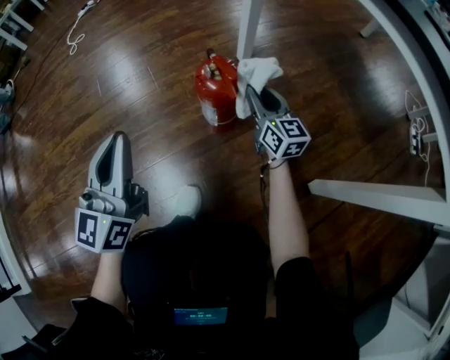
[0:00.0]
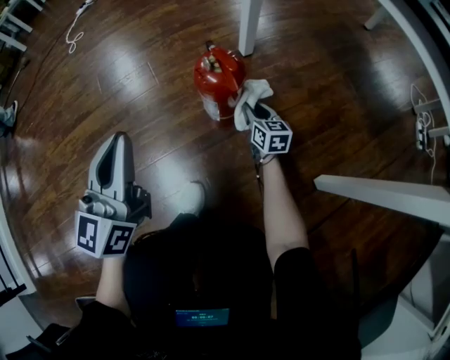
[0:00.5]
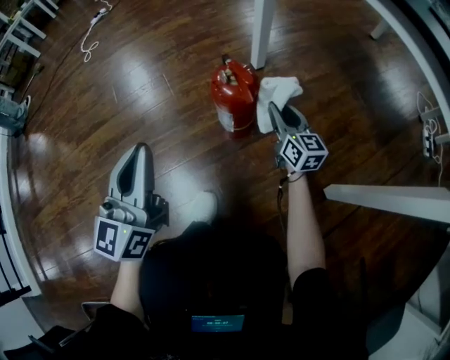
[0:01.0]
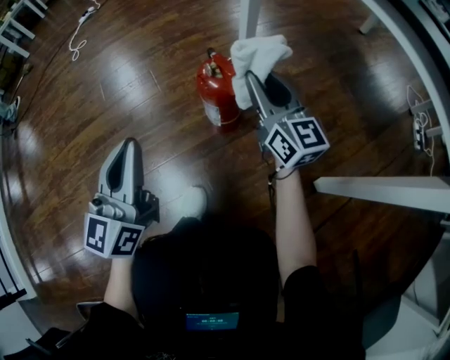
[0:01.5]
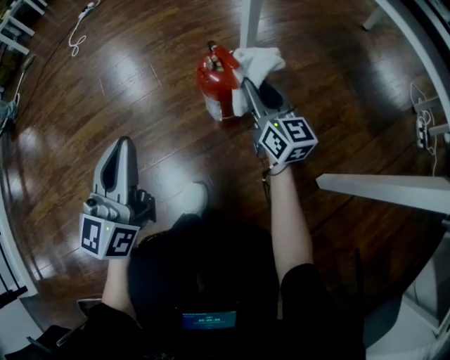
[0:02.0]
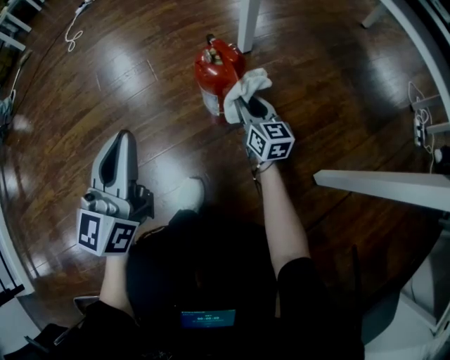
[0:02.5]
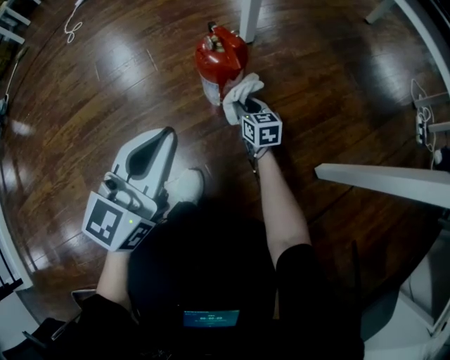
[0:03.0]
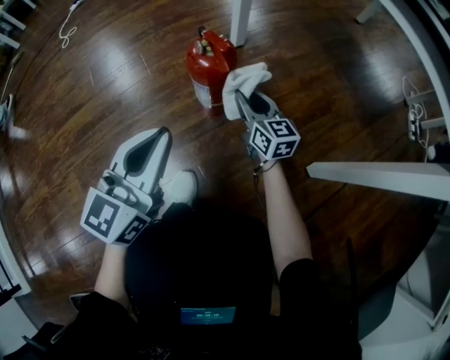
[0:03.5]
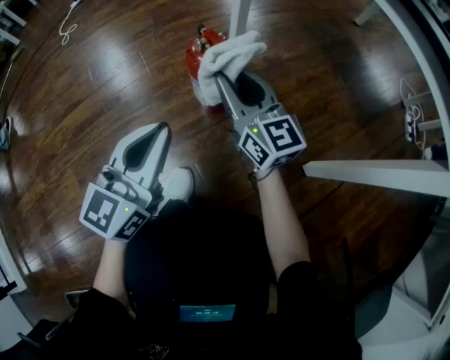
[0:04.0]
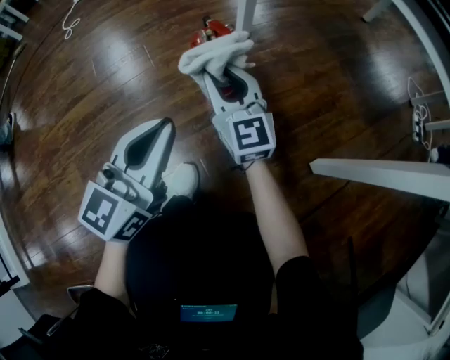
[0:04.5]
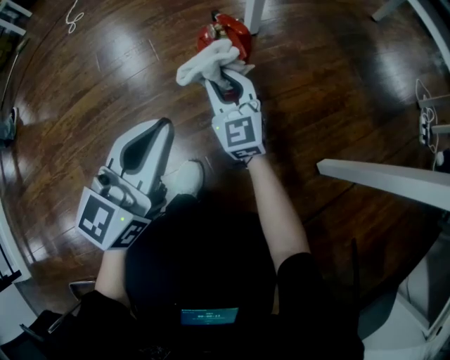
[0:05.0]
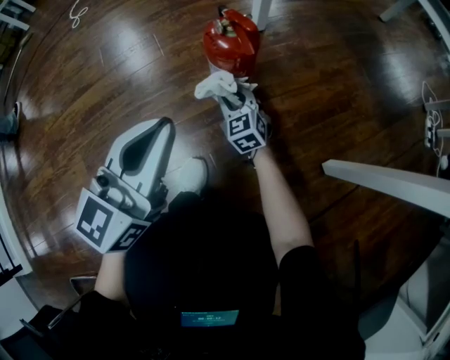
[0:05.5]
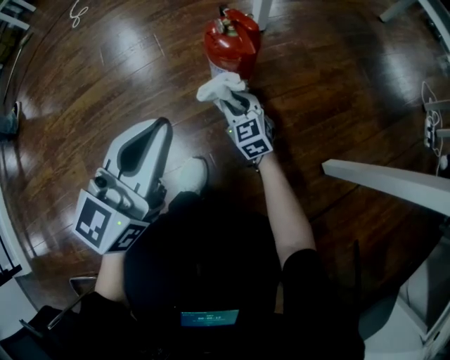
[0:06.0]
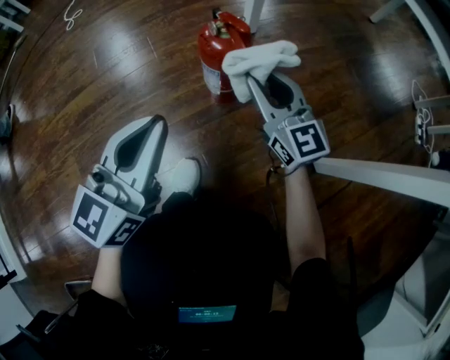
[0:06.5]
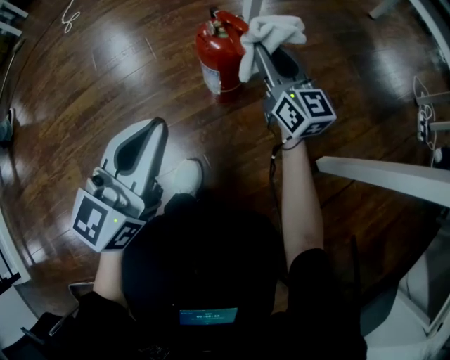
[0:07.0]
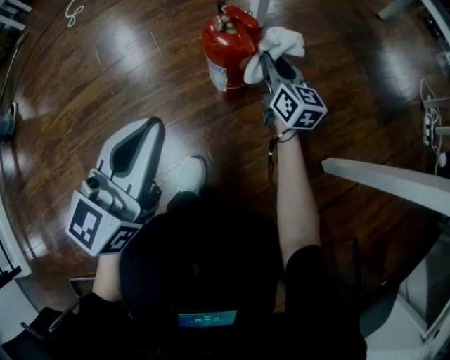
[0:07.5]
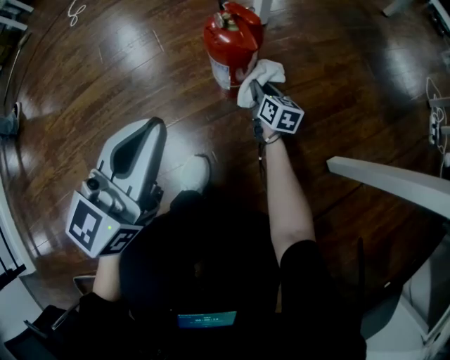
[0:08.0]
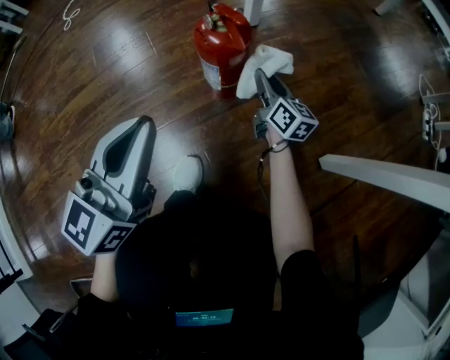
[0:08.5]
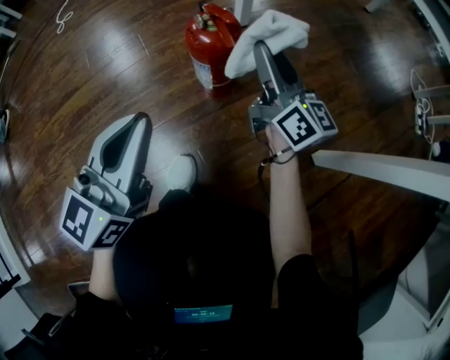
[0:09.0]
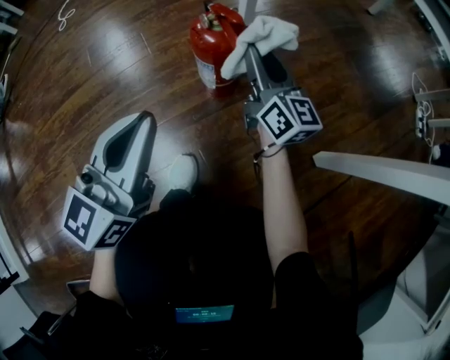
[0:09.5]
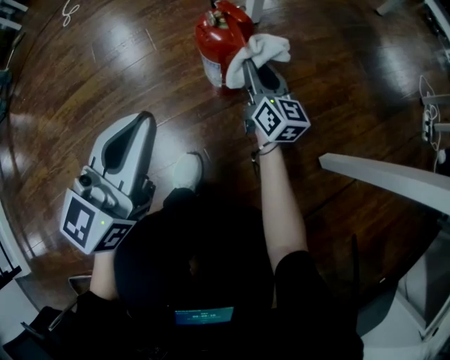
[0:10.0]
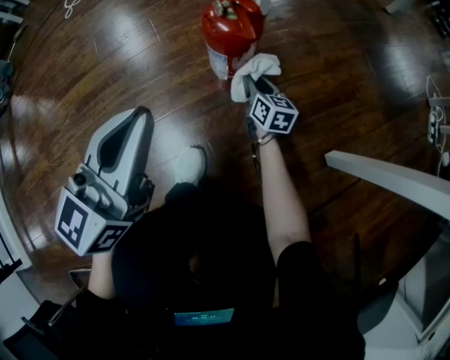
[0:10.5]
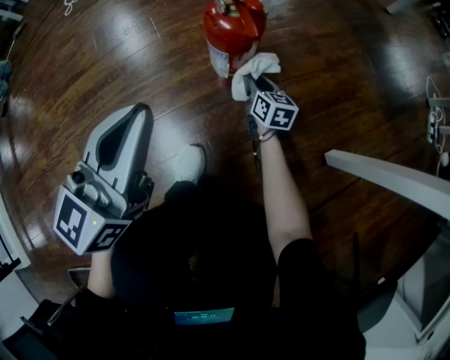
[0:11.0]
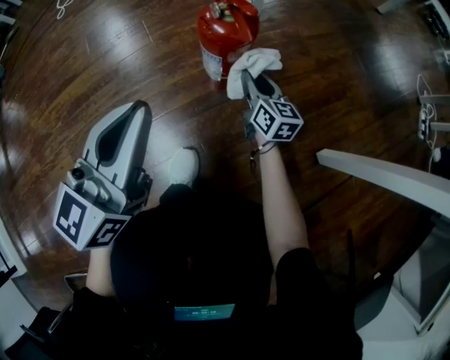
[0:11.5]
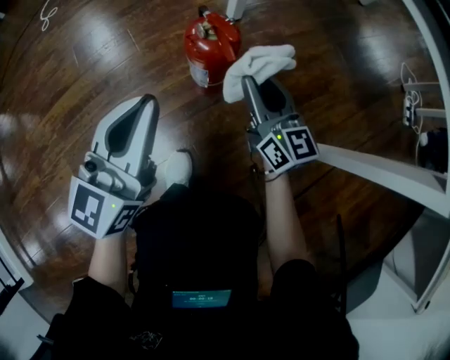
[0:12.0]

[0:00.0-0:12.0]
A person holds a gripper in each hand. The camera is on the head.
0.0 to 2.0 s: The right gripper moves up and down over roughly 30 cm, changing direction 2 times.
2.0 to 4.0 s: The right gripper travels backward by roughly 5 cm, and moves about 20 cm downward and comes back; the left gripper moves to the right, roughly 10 cm.
4.0 to 6.0 s: The right gripper goes some 25 cm downward, and rotates approximately 30 degrees.
6.0 to 8.0 s: The right gripper is displaced to the right and forward by roughly 10 cm, reaches some 20 cm upward, then returns, and twists some 50 degrees clockwise, seen from behind.
8.0 to 10.0 s: The right gripper goes some 15 cm upward, and turns by approximately 20 degrees.
10.0 to 12.0 s: The left gripper is displaced forward by about 5 cm. Meanwhile the right gripper heads upward, covering about 10 cm.

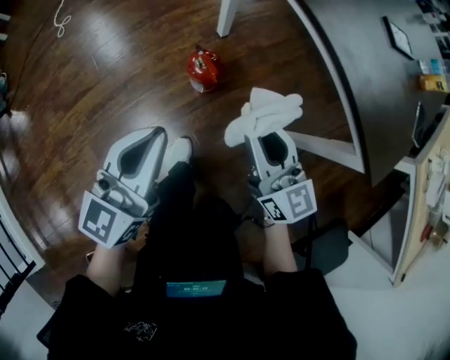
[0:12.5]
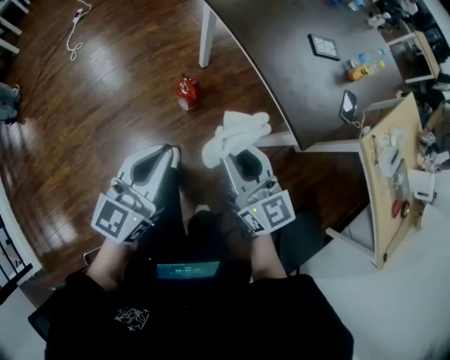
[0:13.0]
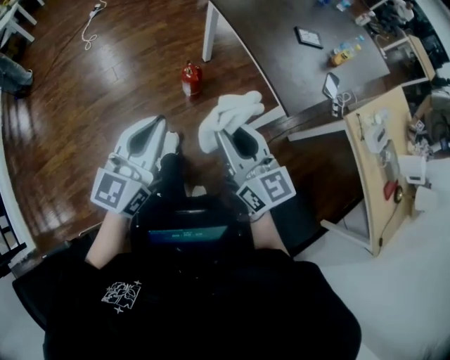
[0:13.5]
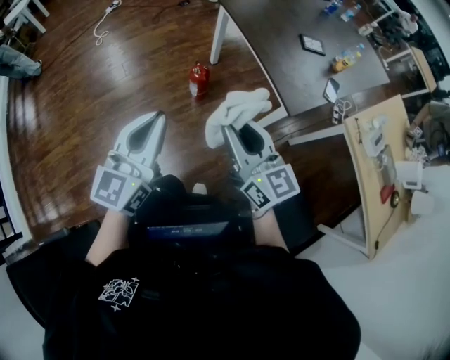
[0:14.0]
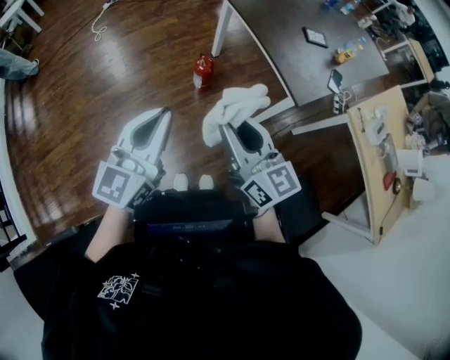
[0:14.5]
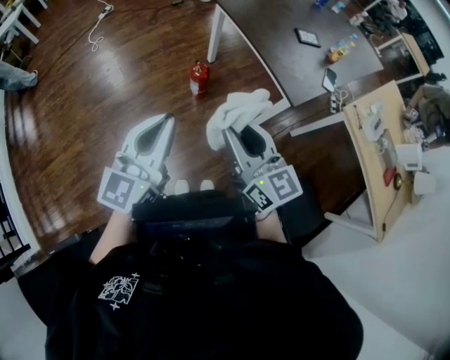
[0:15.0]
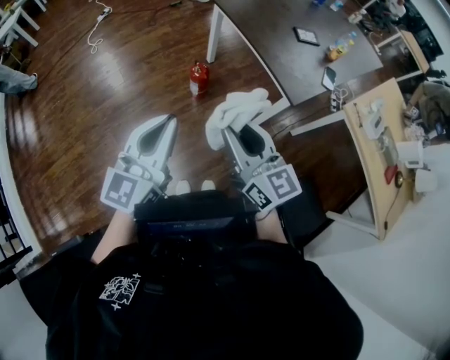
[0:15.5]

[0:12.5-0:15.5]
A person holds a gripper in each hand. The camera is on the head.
12.5 to 14.0 s: Both grippers travel together upward and backward, about 50 cm.
14.0 to 15.5 s: The grippers move only a little.

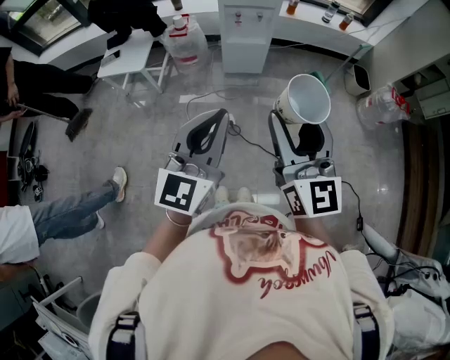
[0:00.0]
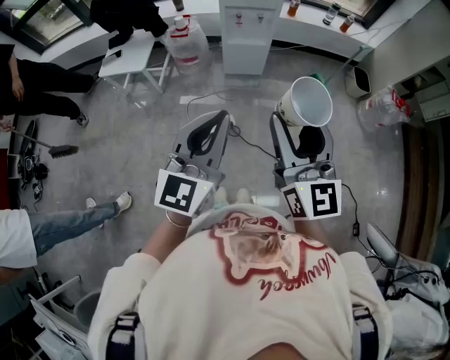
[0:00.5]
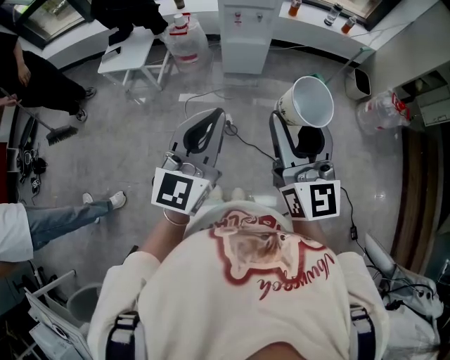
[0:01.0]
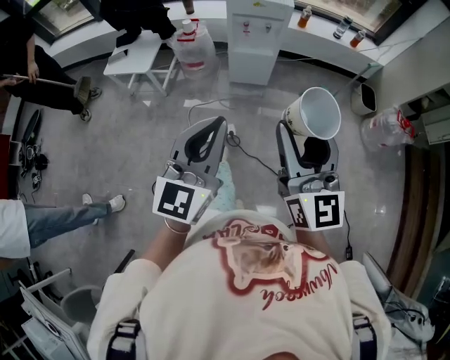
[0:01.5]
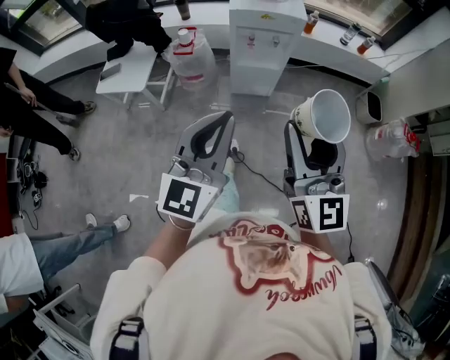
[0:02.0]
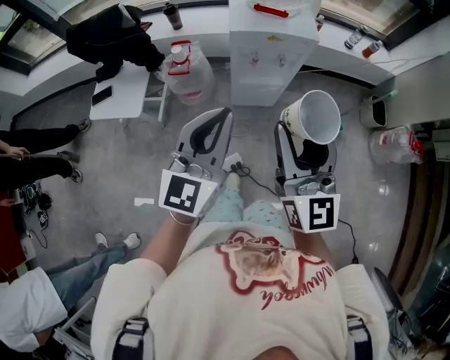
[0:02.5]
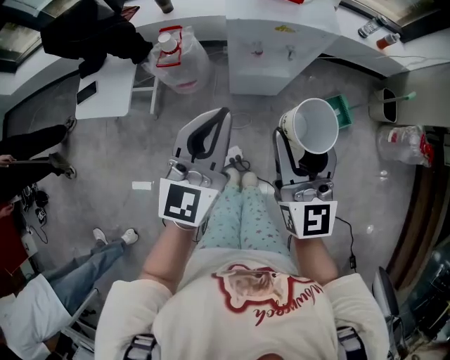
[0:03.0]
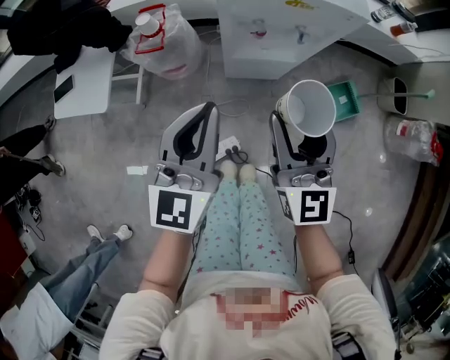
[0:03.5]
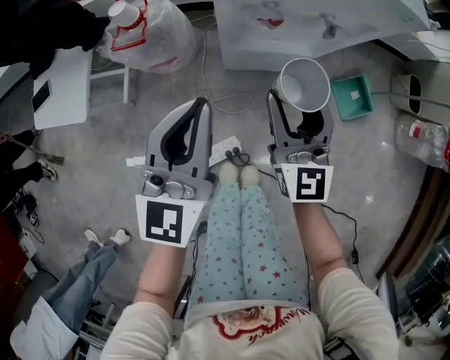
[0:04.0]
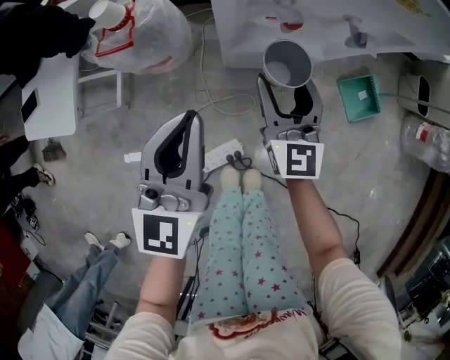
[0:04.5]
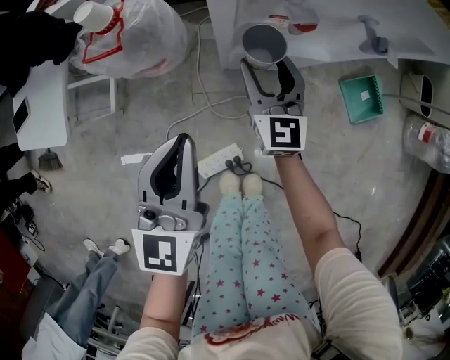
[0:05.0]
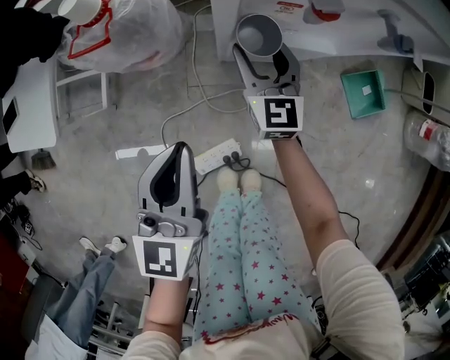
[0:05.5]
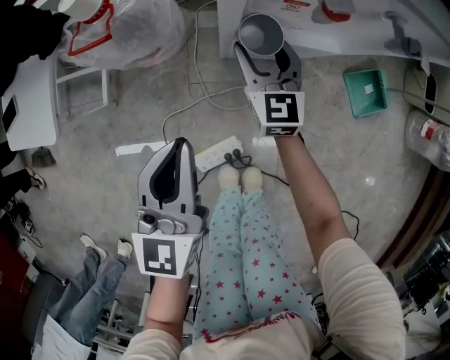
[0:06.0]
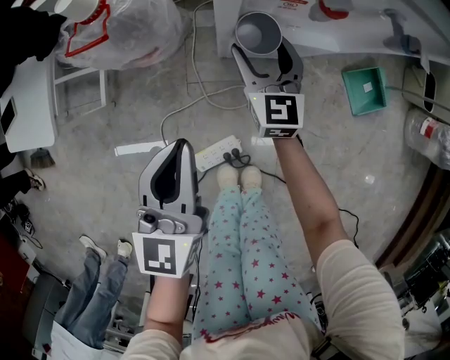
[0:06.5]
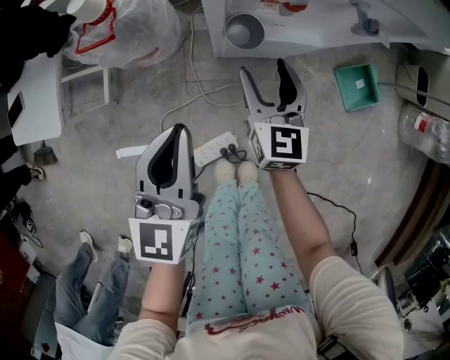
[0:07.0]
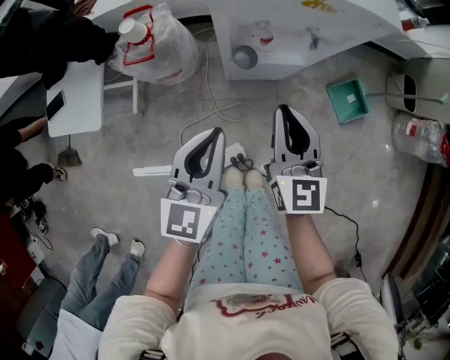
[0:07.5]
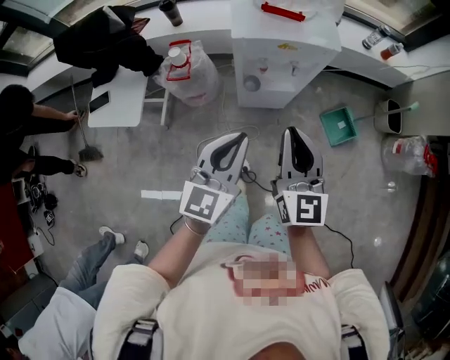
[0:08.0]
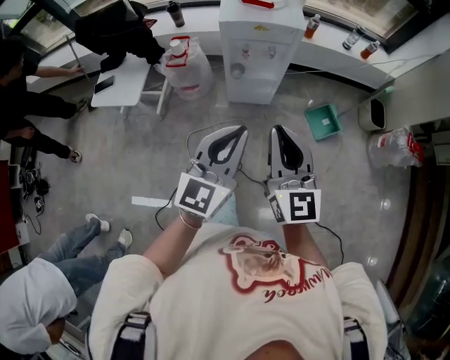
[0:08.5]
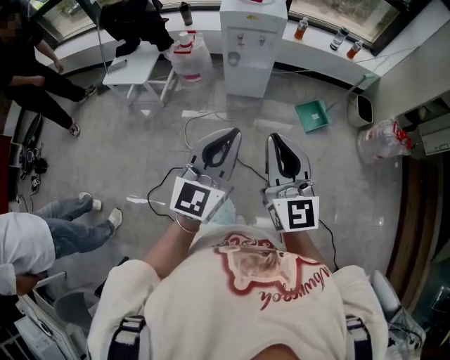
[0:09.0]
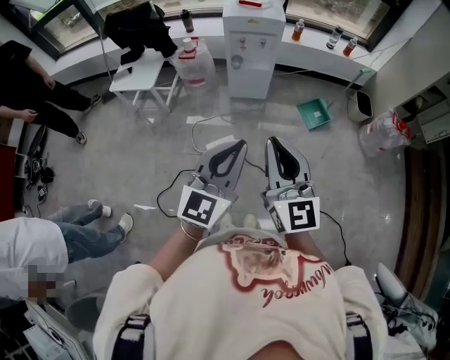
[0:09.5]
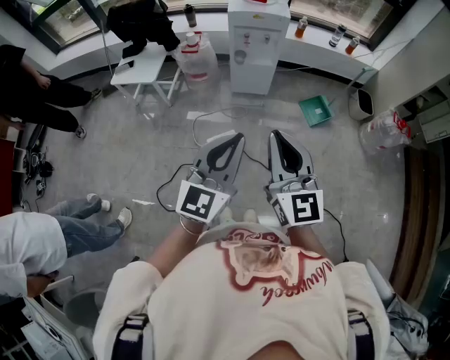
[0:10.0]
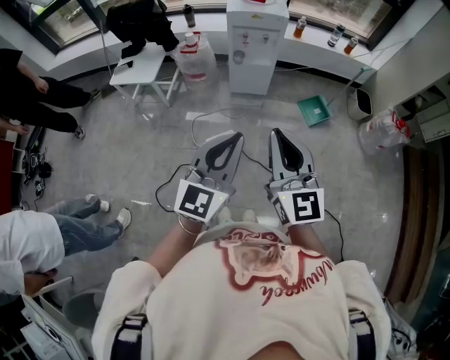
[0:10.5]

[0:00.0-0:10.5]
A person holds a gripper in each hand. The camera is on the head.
0.0 to 2.0 s: The grippers both shift forward by about 20 cm.
2.0 to 4.0 s: The right gripper goes roughly 50 cm downward and forward. Meanwhile the left gripper is displaced forward and downward by approximately 50 cm.
4.0 to 6.5 s: The right gripper is displaced downward and forward by about 25 cm; the left gripper travels downward by roughly 15 cm.
6.5 to 8.5 s: The right gripper is displaced upward and backward by roughly 70 cm, changes its angle by approximately 20 degrees, and closes up; the left gripper shifts approximately 50 cm upward, backward and to the right, and swivels roughly 30 degrees.
8.5 to 10.5 s: Both grippers move backward, approximately 30 cm.

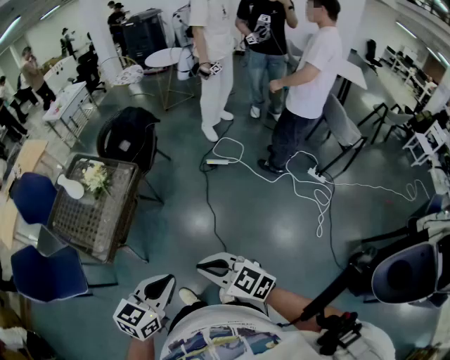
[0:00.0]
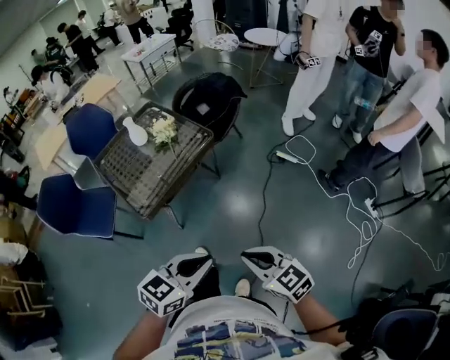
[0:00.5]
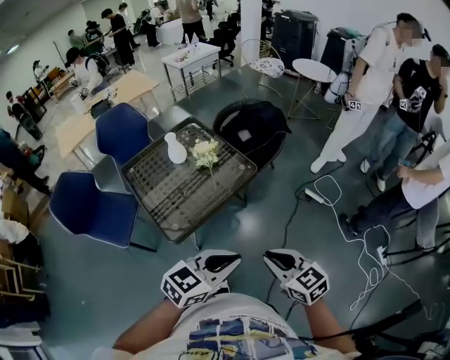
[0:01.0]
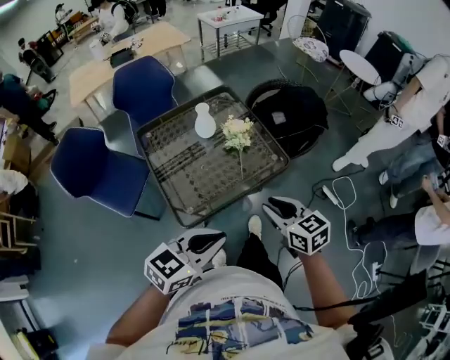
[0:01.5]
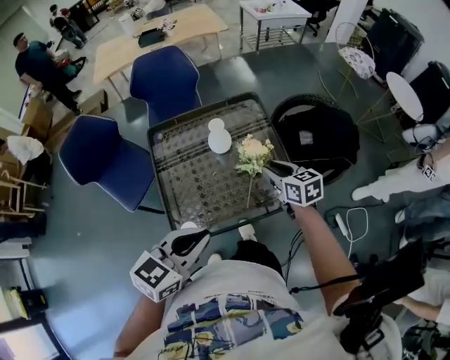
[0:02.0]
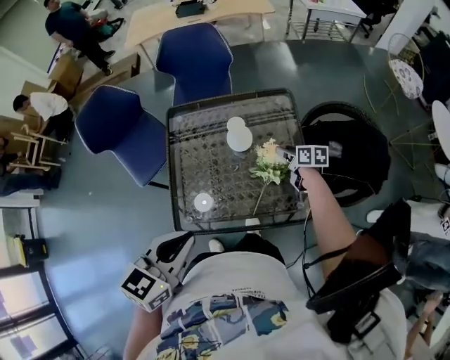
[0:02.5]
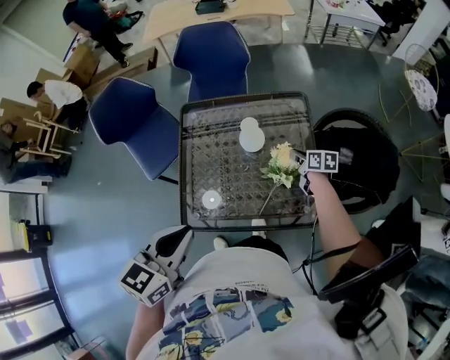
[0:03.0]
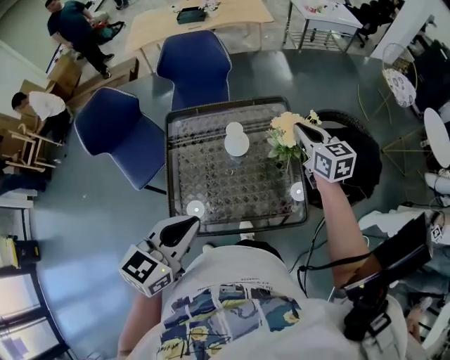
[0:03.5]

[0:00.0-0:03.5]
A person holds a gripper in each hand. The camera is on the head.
0.0 to 2.0 s: Both grippers are carried approximately 60 cm. The right gripper turns by some 20 degrees, and opens up, while the left gripper changes its angle by approximately 40 degrees.
2.0 to 3.5 s: The right gripper heads forward, covering approximately 20 cm, reaches some 15 cm downward, then returns, and opens and closes again. Meanwhile the left gripper travels forward by some 10 cm.
